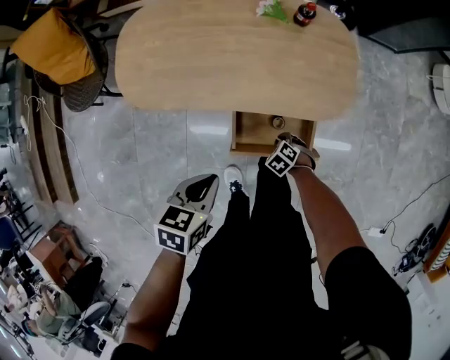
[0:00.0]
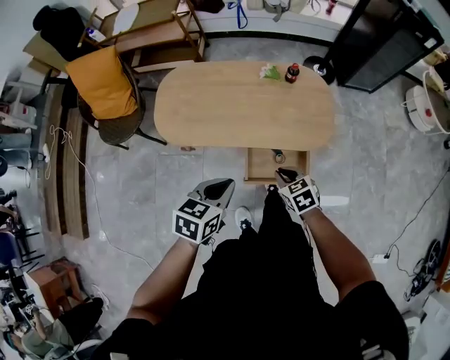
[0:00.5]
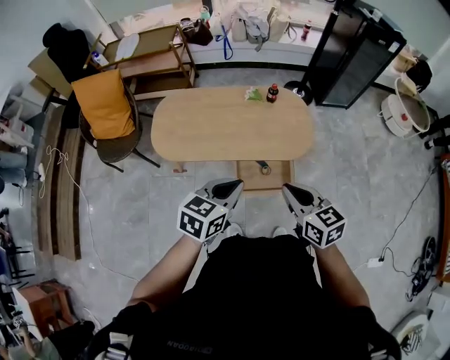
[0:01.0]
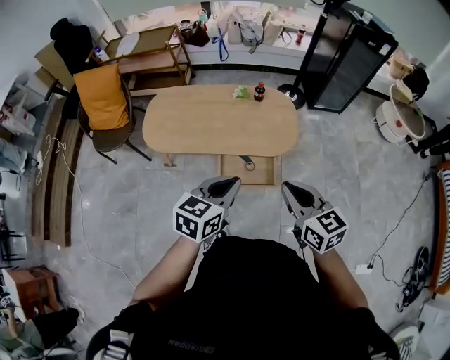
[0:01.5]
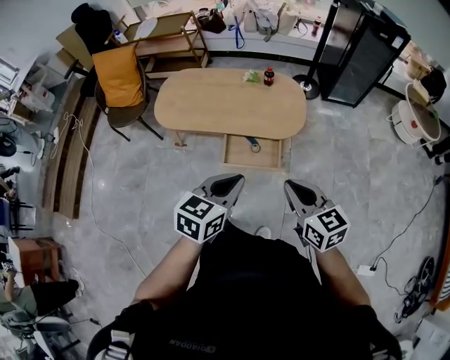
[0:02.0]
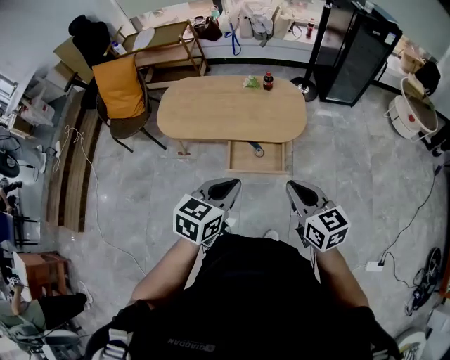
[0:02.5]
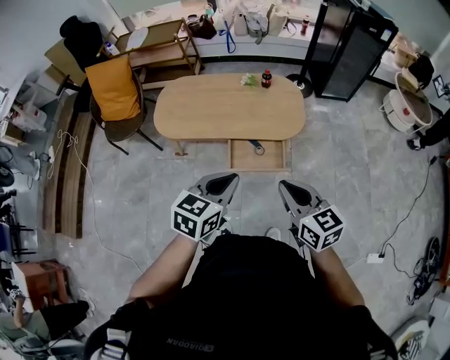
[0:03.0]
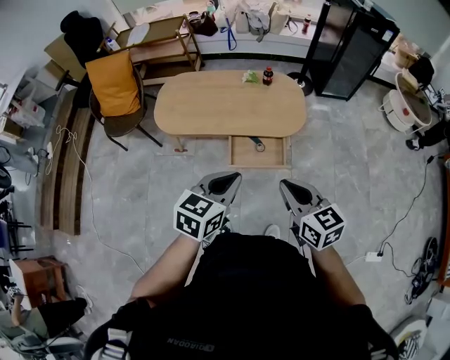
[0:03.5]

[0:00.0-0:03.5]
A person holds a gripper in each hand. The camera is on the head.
0:00.0 to 0:02.0: The right gripper shifts roughly 60 cm upward, and tips its fingers upward by some 60 degrees. The left gripper shifts approximately 25 cm upward, and rotates about 30 degrees.
0:02.0 to 0:03.5: Both grippers travel together to the left, approximately 10 cm.

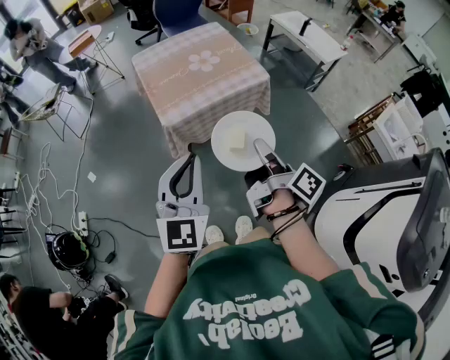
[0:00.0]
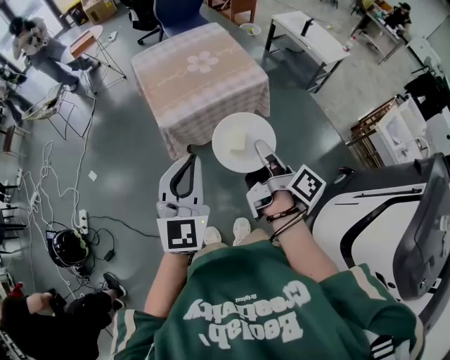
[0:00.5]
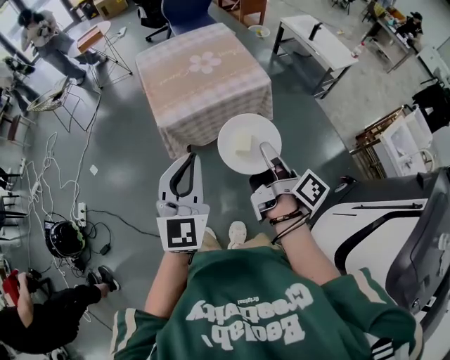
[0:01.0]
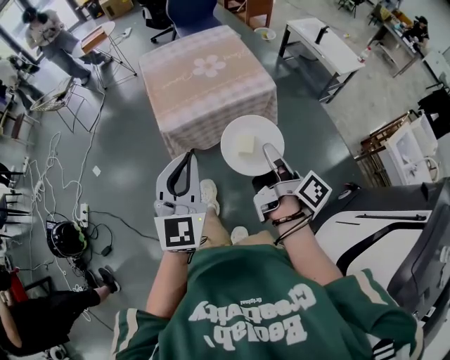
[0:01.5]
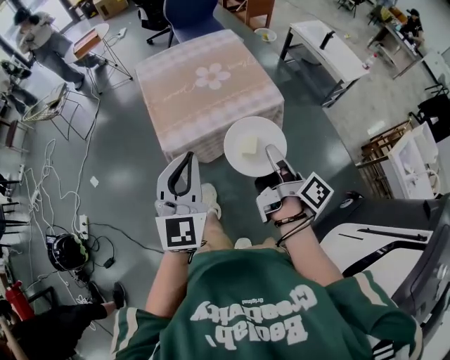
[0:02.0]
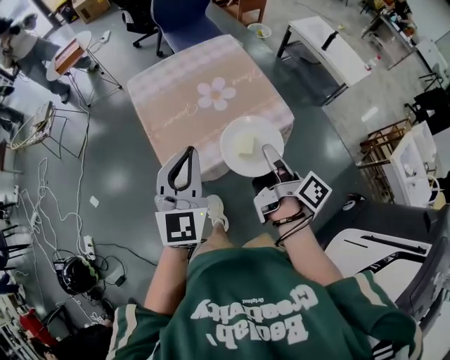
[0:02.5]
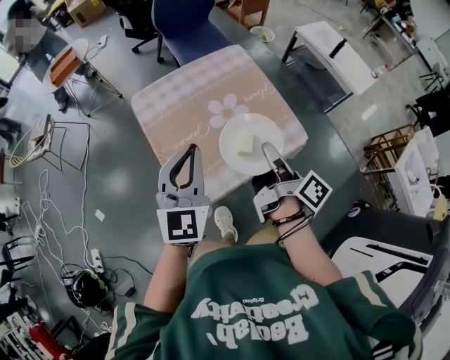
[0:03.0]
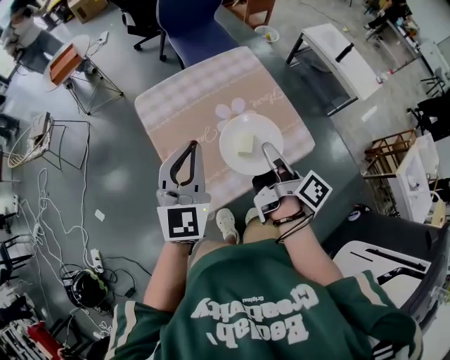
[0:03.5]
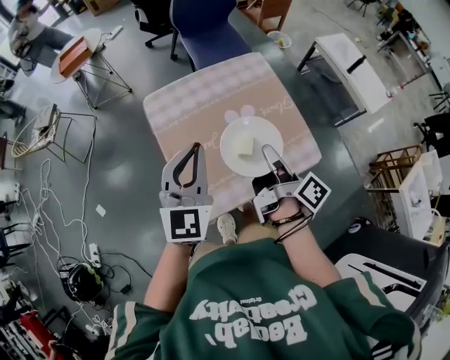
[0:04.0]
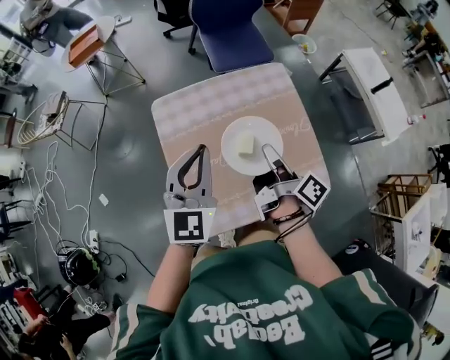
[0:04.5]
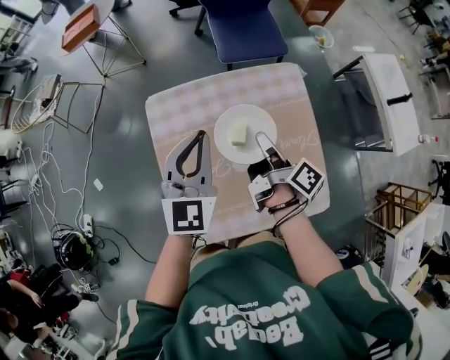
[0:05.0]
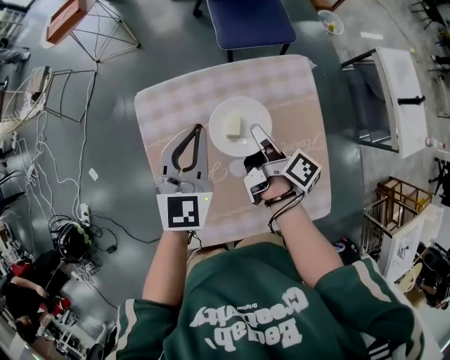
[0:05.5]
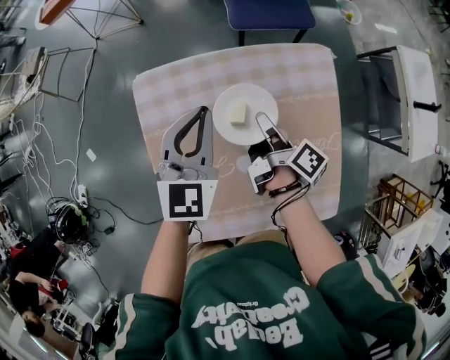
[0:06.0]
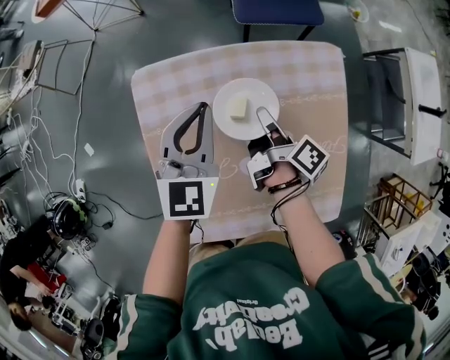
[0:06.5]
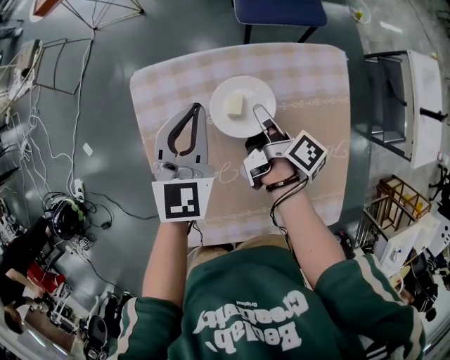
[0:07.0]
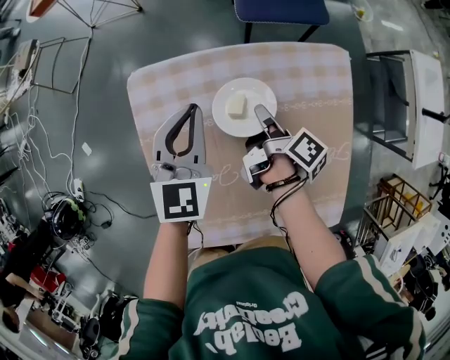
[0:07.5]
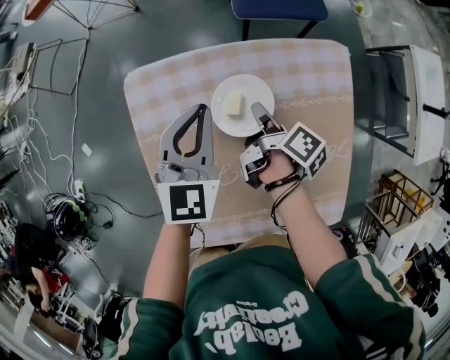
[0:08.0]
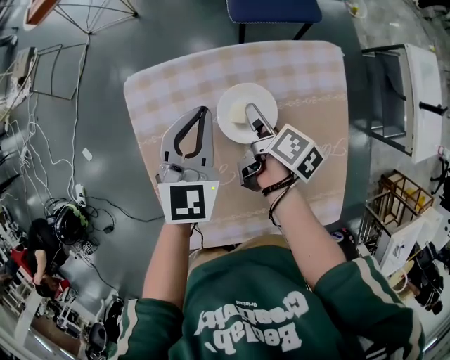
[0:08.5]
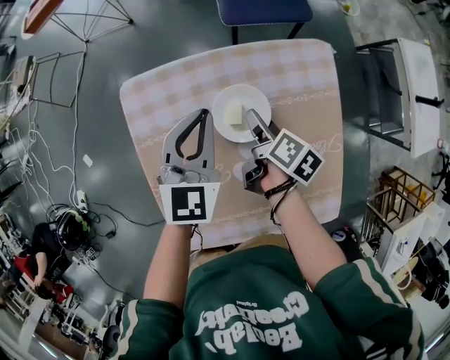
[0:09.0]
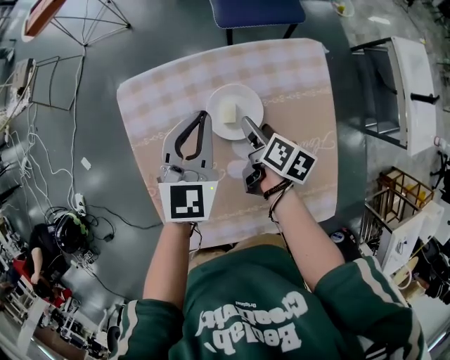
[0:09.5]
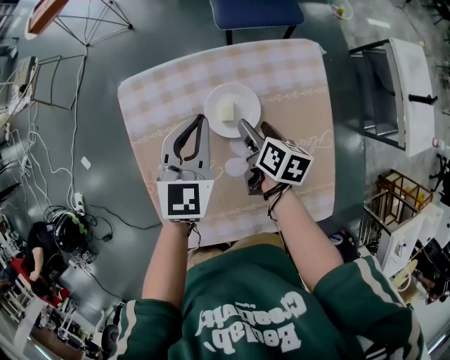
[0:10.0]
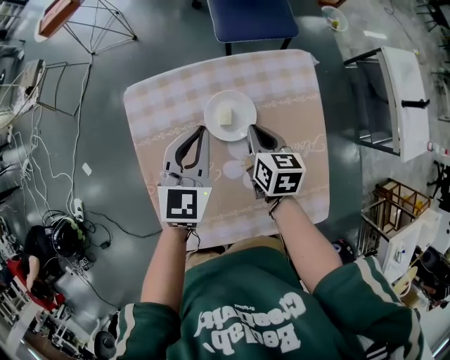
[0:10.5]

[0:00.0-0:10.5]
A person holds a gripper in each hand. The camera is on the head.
0:00.0 to 0:02.0: Both grippers travel together forward, about 15 cm.
0:02.0 to 0:04.0: The right gripper shifts approximately 35 cm forward and to the left; the left gripper travels forward by some 35 cm.
0:04.0 to 0:06.5: Both grippers move forward and downward, approximately 35 cm. The right gripper swivels approximately 30 degrees. The left gripper turns by about 20 degrees.
0:06.5 to 0:08.5: The right gripper opens.
0:08.5 to 0:10.5: The right gripper changes place by about 5 cm, rolls counterclockwise, seen from behind, by about 50 degrees, and closes up. The left gripper is displaced backward by about 5 cm.

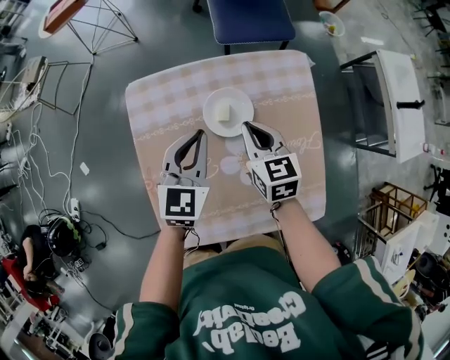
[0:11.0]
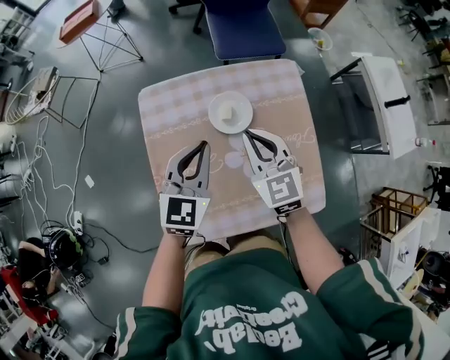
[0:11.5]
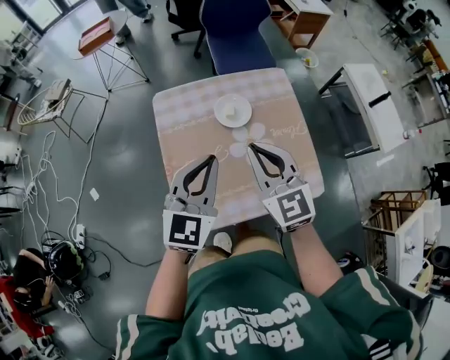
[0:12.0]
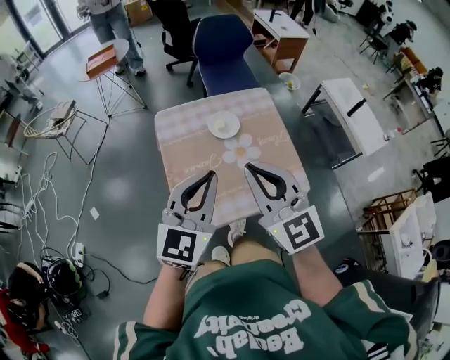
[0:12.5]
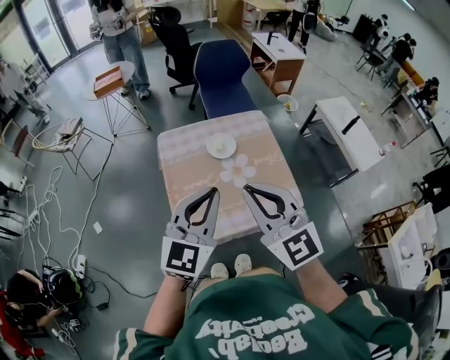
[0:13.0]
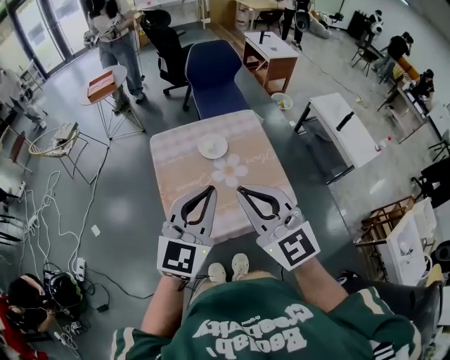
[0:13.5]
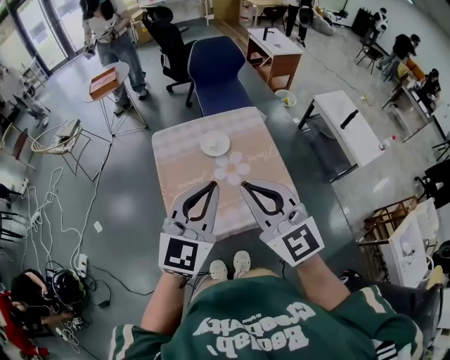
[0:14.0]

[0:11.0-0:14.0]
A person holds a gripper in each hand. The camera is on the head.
0:11.0 to 0:12.5: The right gripper shifts roughly 40 cm upward and backward, and angles its fingers upward, by about 30 degrees, while the left gripper goes roughly 35 cm backward and upward, and turns by roughly 30 degrees.
0:12.5 to 0:14.0: The right gripper shifts by some 5 cm. Meanwhile the left gripper travels to the right by some 5 cm.

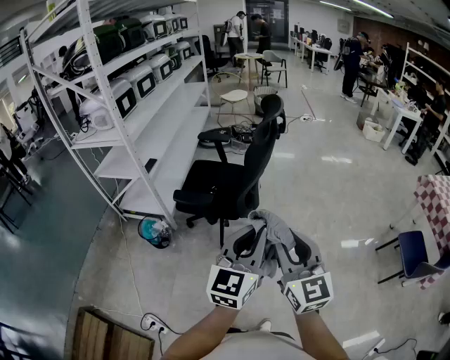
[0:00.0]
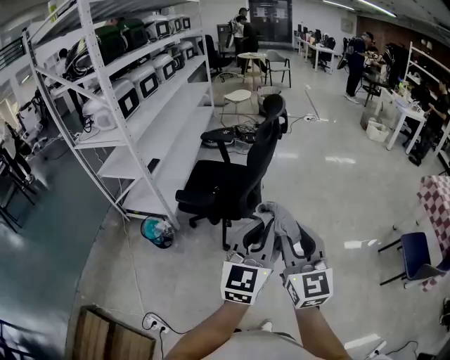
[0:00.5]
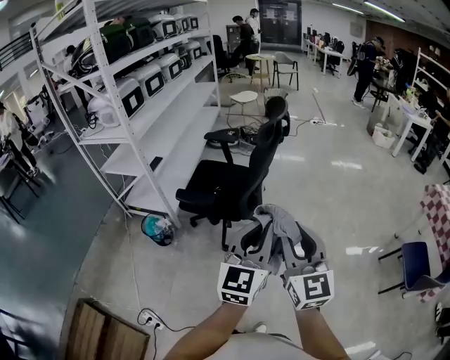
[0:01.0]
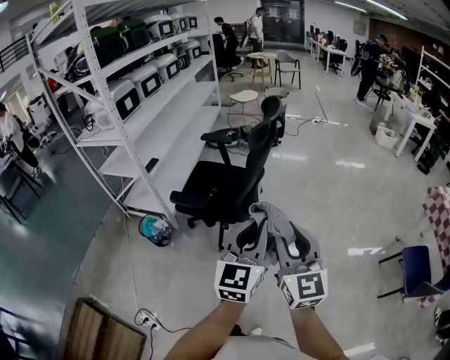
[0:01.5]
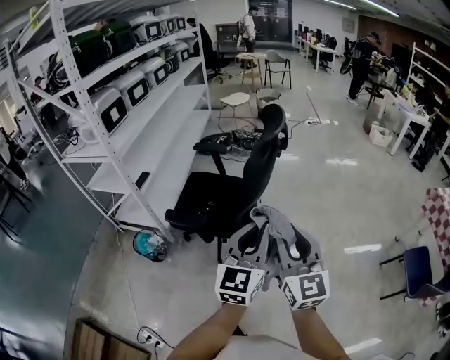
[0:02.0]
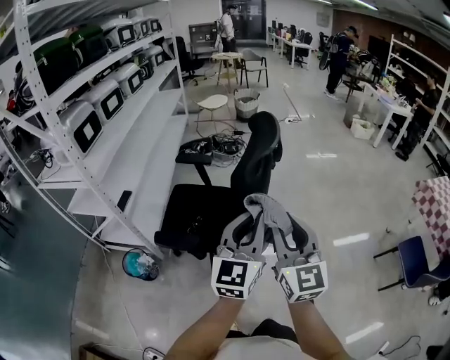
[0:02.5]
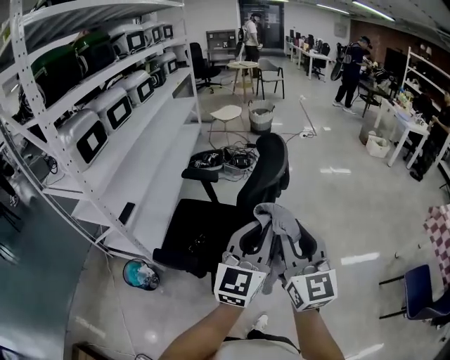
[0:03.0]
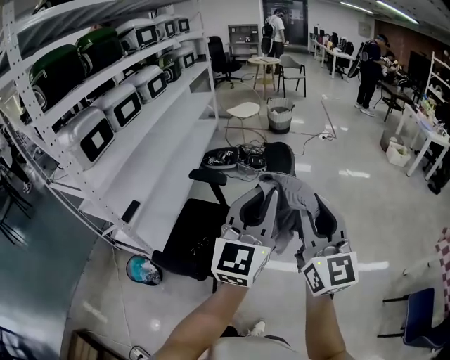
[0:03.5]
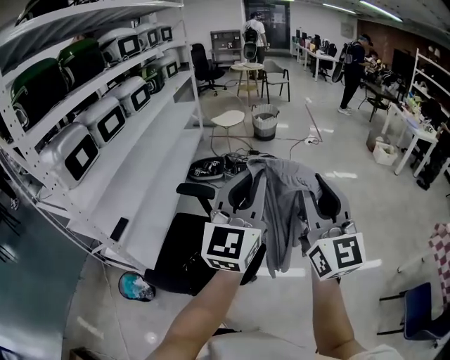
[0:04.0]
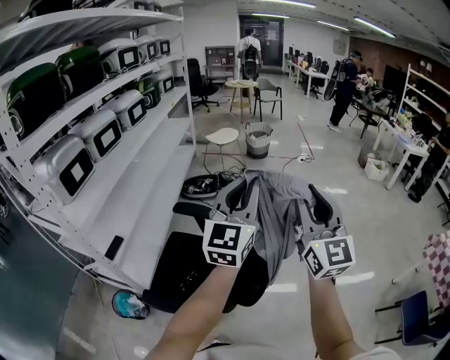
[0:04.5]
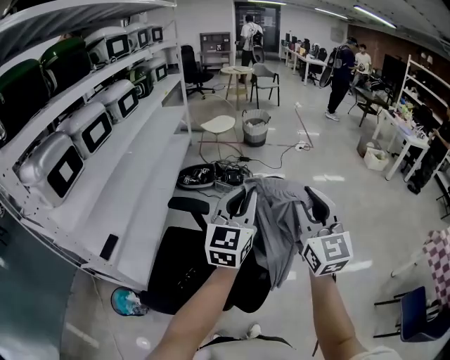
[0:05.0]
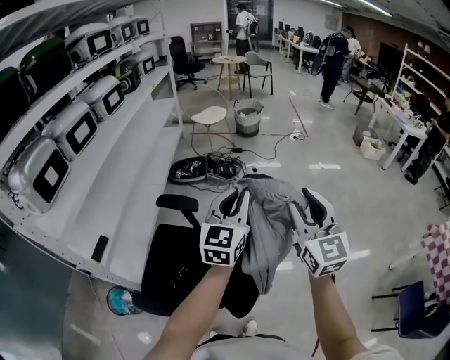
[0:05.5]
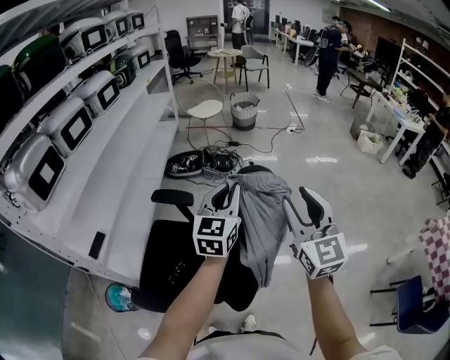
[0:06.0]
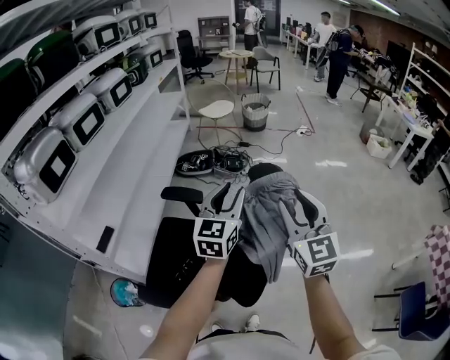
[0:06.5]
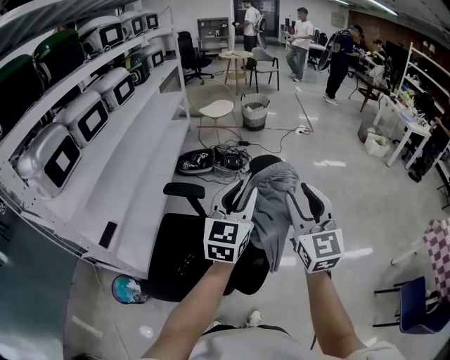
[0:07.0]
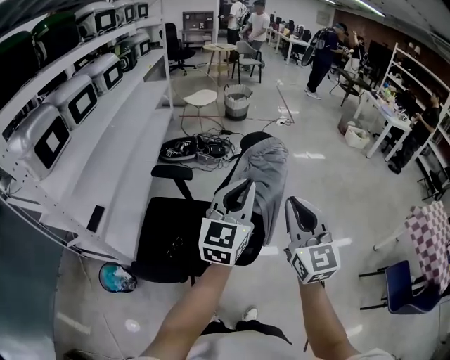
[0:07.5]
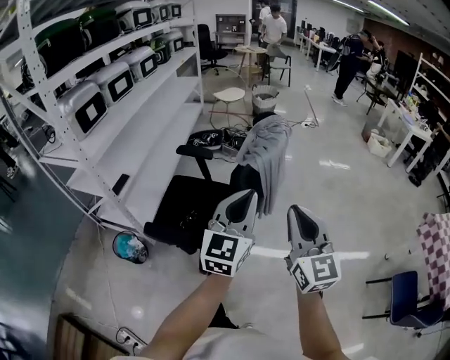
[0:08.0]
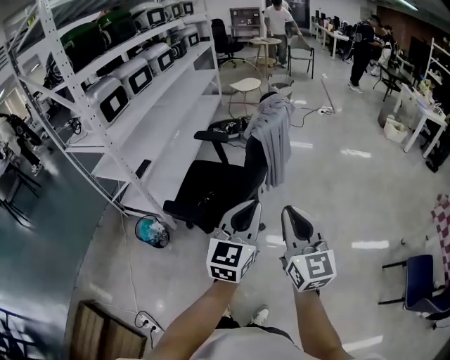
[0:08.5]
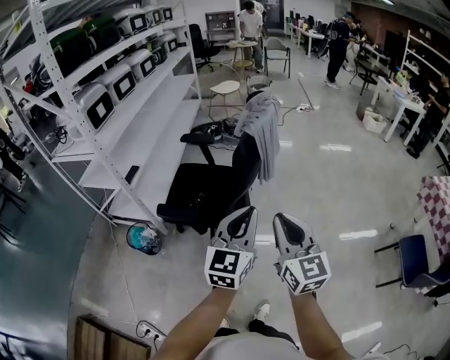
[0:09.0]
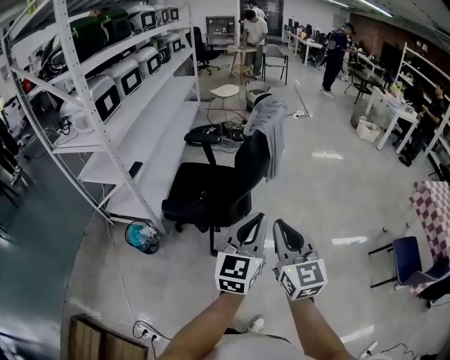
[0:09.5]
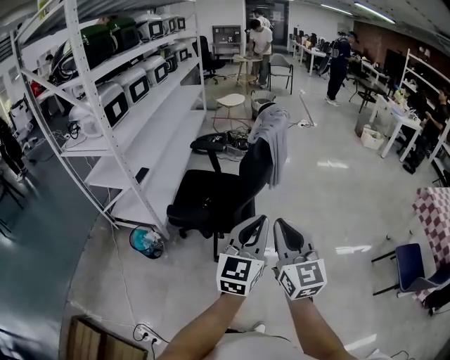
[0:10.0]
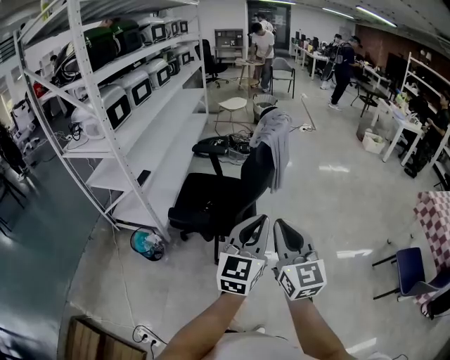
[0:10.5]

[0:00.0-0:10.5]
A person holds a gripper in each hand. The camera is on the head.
0:00.0 to 0:02.0: The grippers both shift forward by about 15 cm.
0:02.0 to 0:04.0: The right gripper moves forward and upward, some 40 cm, while the left gripper is displaced forward by some 40 cm.
0:04.0 to 0:06.5: Both grippers move forward and downward, roughly 20 cm. The left gripper rotates about 20 degrees, and opens up.
0:06.5 to 0:08.5: The two grippers travel together, backward, some 50 cm. The left gripper closes its fingers; the right gripper closes its fingers.
0:08.5 to 0:10.5: Both grippers travel together backward and to the left, roughly 15 cm.
